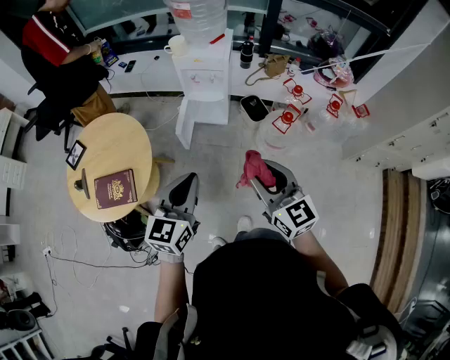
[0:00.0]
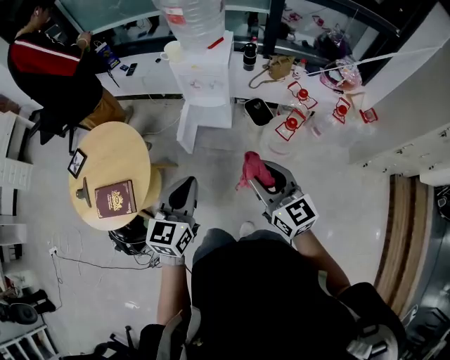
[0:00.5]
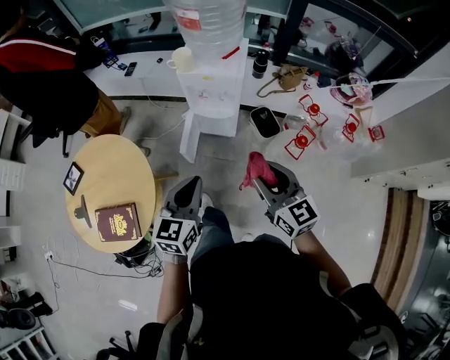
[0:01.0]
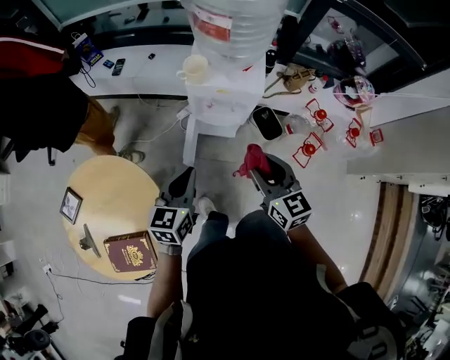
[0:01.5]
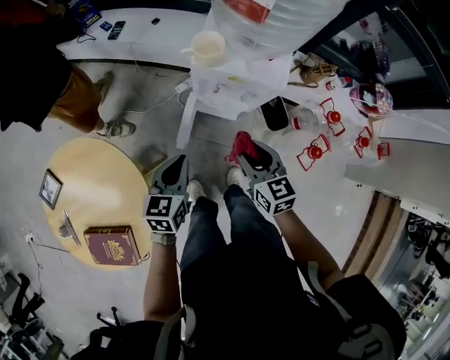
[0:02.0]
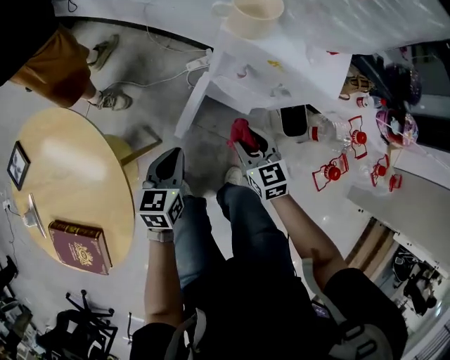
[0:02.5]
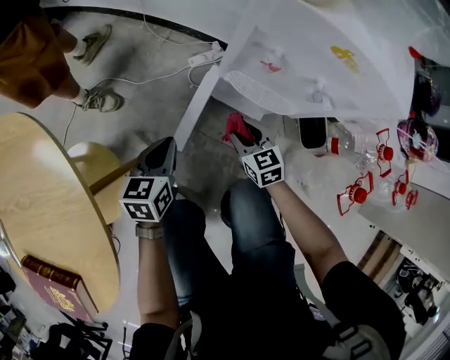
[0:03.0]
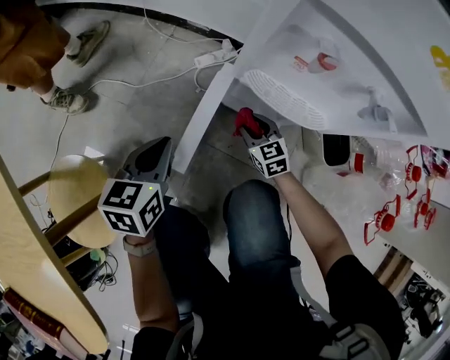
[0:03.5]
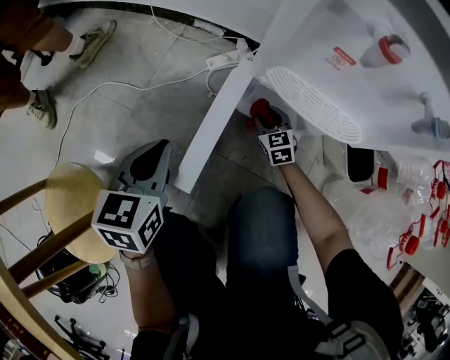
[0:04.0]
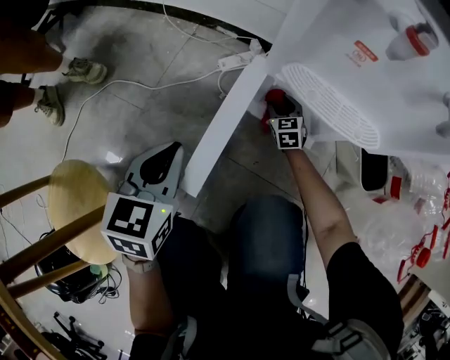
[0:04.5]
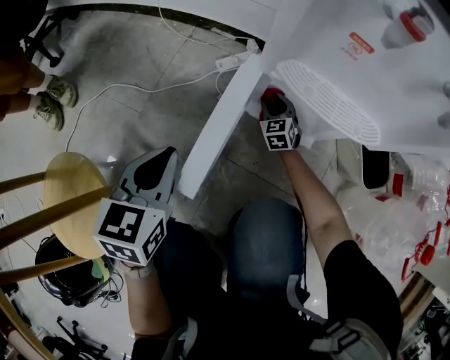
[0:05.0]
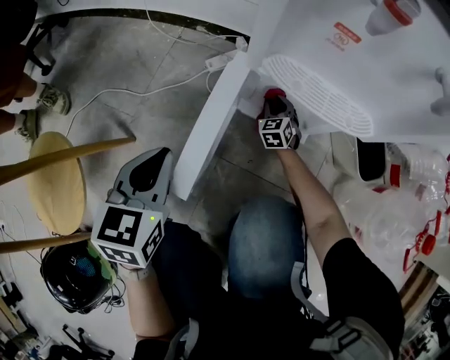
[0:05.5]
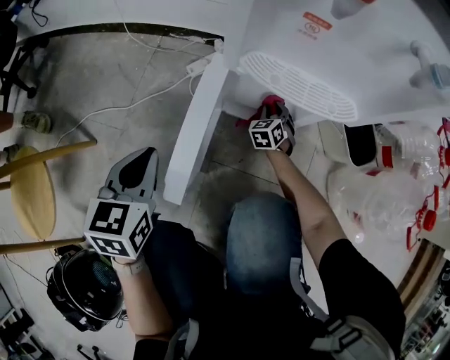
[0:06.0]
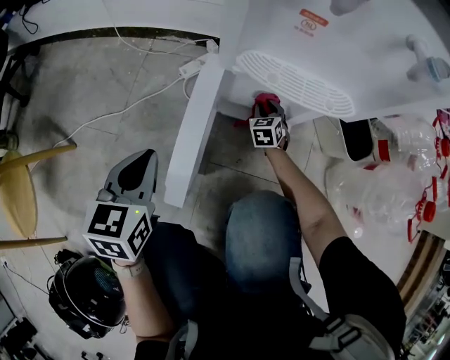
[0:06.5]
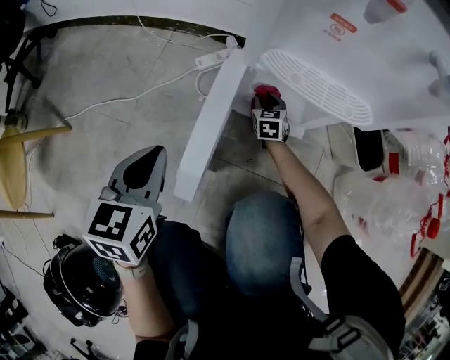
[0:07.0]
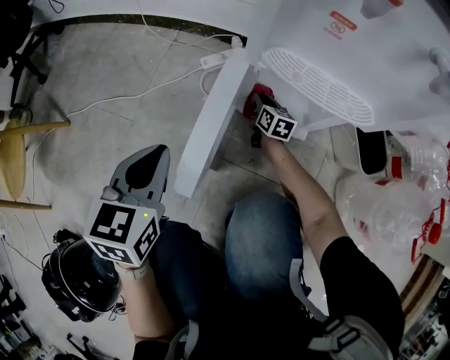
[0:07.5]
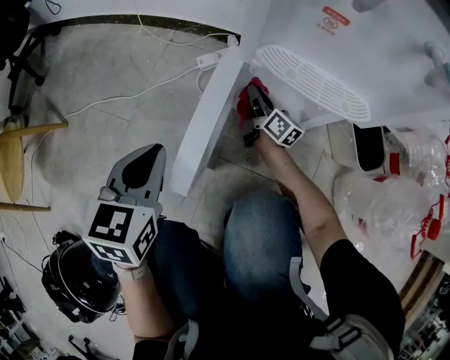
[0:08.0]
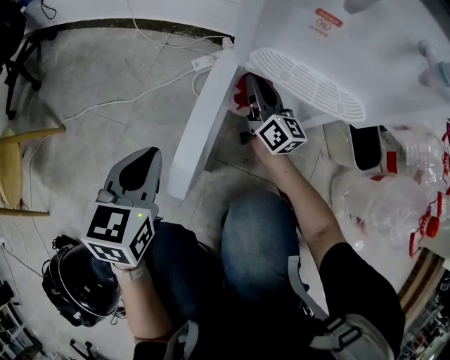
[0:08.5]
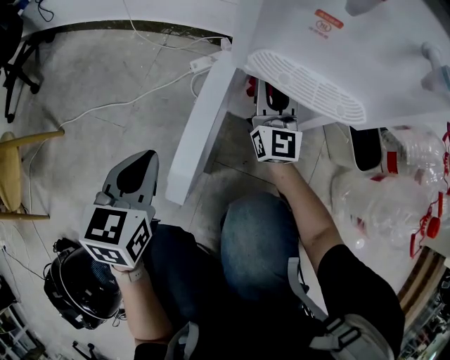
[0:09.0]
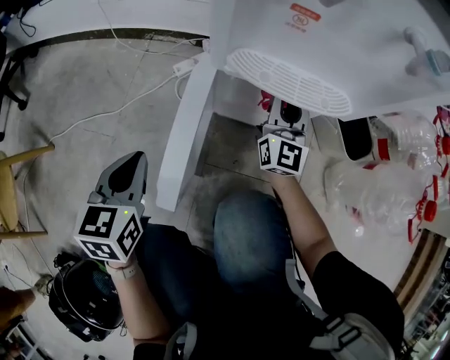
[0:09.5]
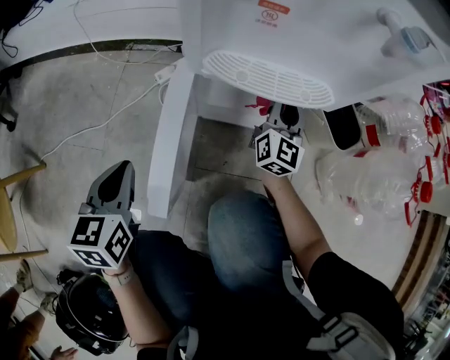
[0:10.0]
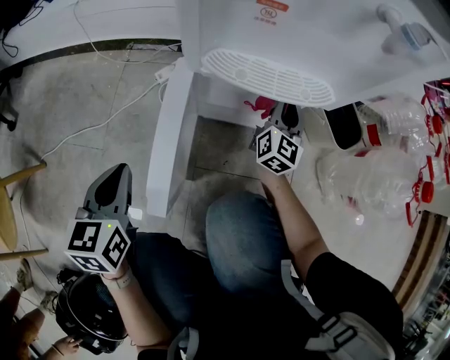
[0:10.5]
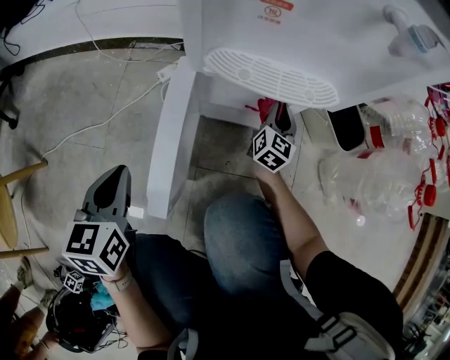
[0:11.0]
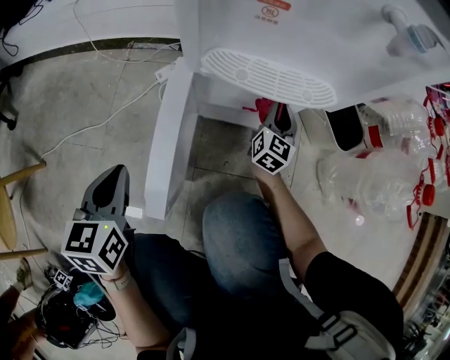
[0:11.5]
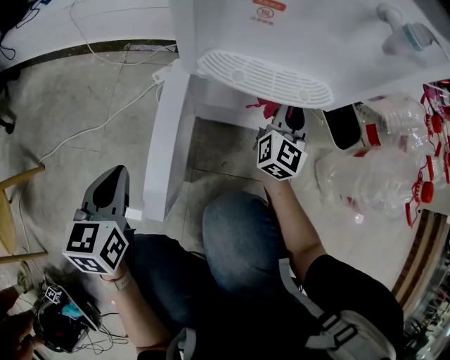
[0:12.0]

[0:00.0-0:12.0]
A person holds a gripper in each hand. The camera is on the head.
0:00.0 to 0:02.0: The two grippers travel together, forward, about 50 cm. The two grippers go some 20 cm downward. The left gripper rotates approximately 20 degrees. Meanwhile the right gripper swivels roughly 20 degrees.
0:02.0 to 0:04.0: The right gripper heads downward, covering approximately 70 cm, and rotates some 20 degrees. The left gripper moves downward, about 50 cm.
0:04.0 to 0:06.0: The right gripper moves to the right and downward, some 10 cm, and changes its angle by about 40 degrees.
0:06.0 to 0:08.0: The right gripper shifts roughly 15 cm to the left and upward, and angles its fingers upward, by some 40 degrees.
0:08.0 to 0:10.0: The right gripper heads to the right and upward, covering some 20 cm, and swivels approximately 60 degrees.
0:10.0 to 0:12.0: The right gripper travels downward and back again, about 10 cm each way.

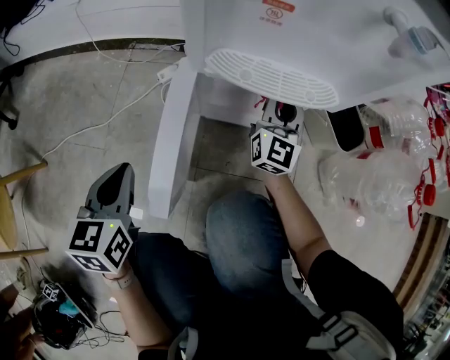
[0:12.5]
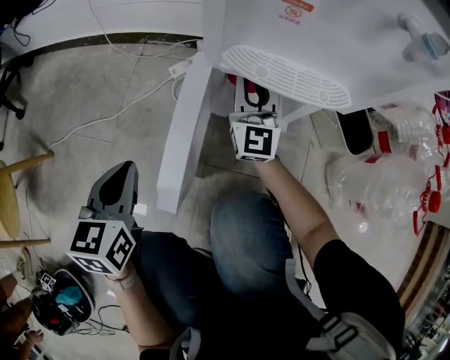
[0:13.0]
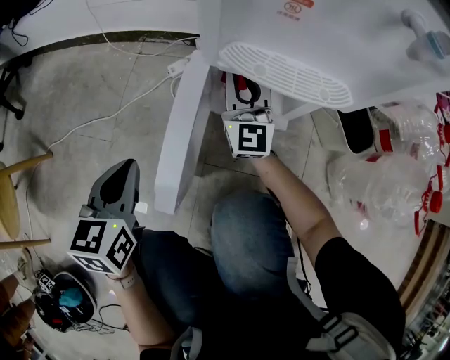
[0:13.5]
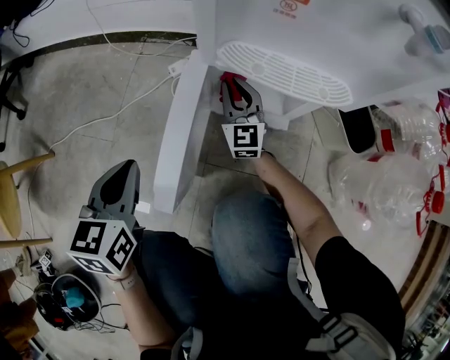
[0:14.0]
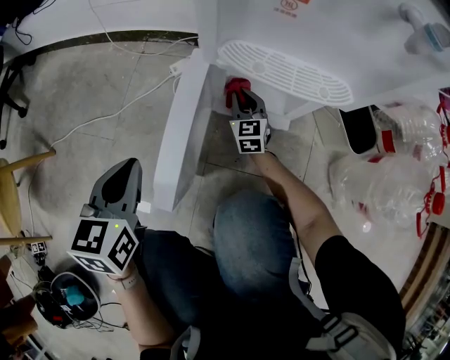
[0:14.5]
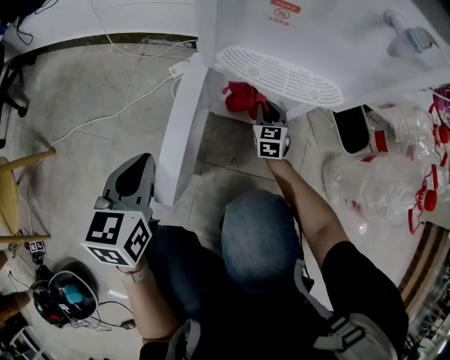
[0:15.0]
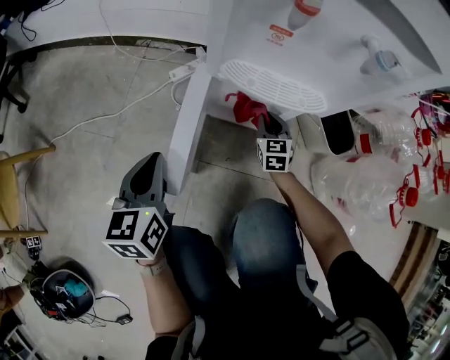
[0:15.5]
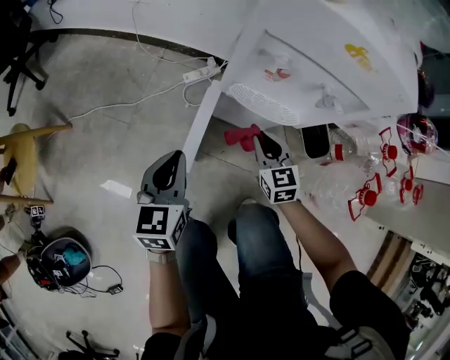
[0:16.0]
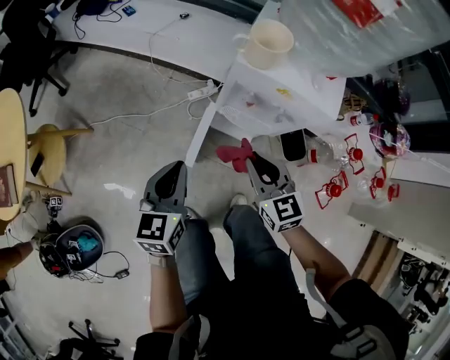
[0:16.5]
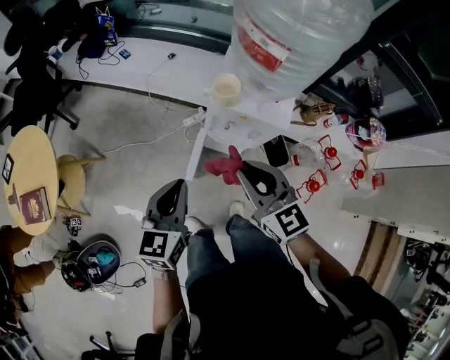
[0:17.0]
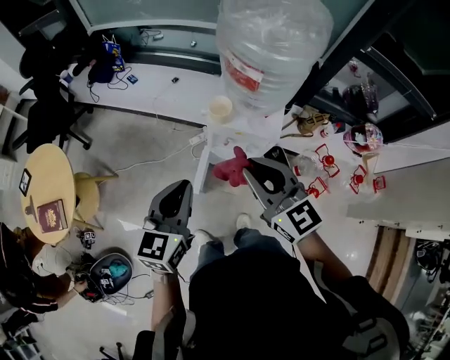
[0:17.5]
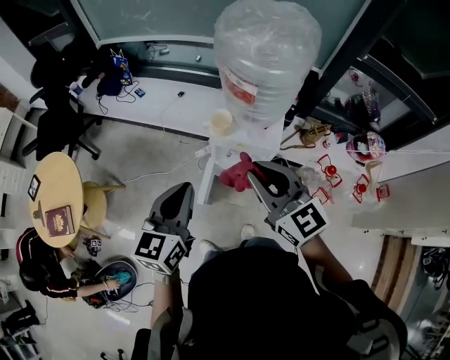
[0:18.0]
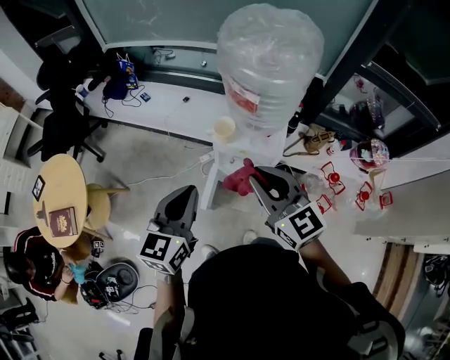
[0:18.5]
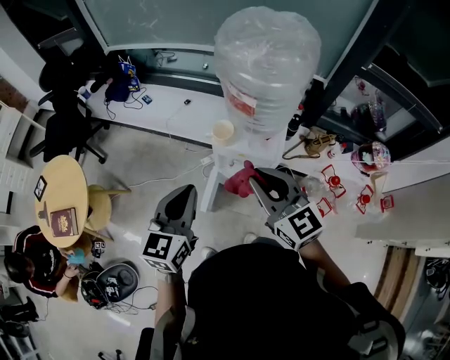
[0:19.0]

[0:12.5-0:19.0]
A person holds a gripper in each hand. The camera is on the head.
0:12.5 to 0:14.5: The right gripper shifts about 20 cm downward and to the left, and turns by about 40 degrees.
0:14.5 to 0:17.0: The two grippers go approximately 70 cm upward. The right gripper changes its angle by approximately 30 degrees.
0:17.0 to 0:19.0: Both grippers move upward, approximately 15 cm.

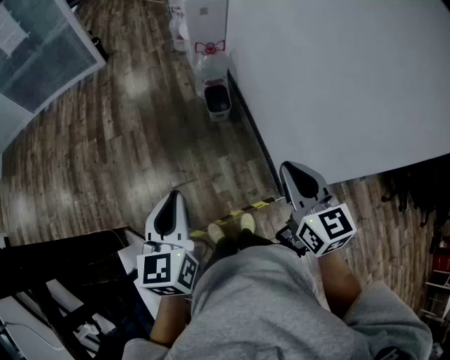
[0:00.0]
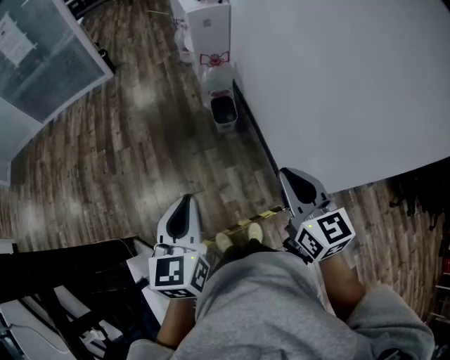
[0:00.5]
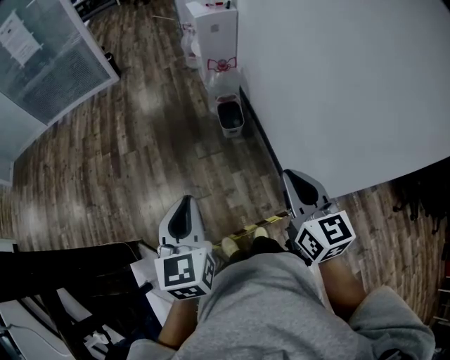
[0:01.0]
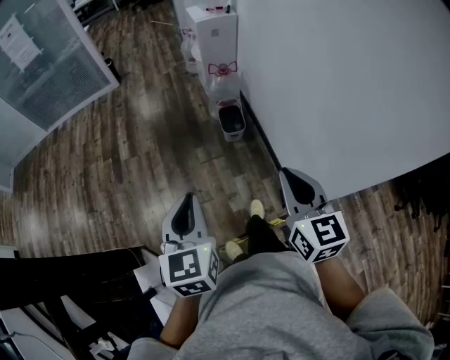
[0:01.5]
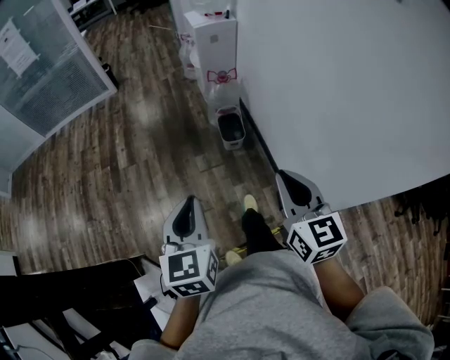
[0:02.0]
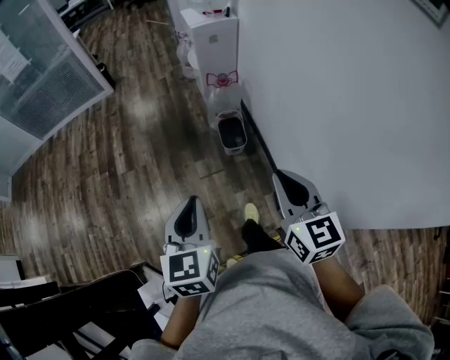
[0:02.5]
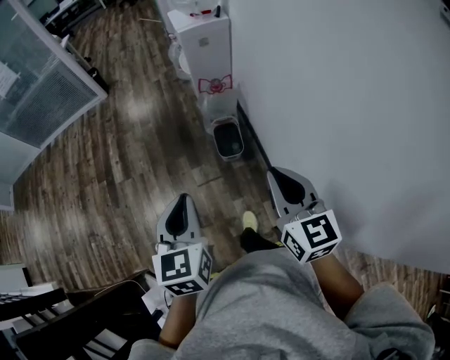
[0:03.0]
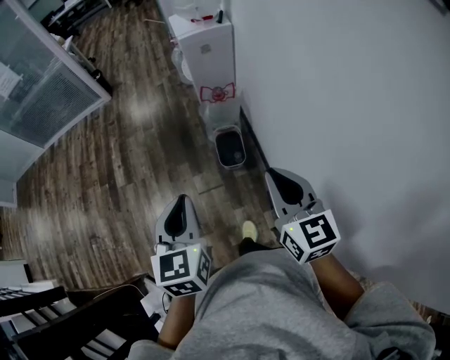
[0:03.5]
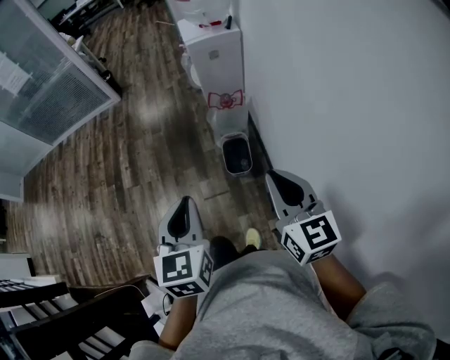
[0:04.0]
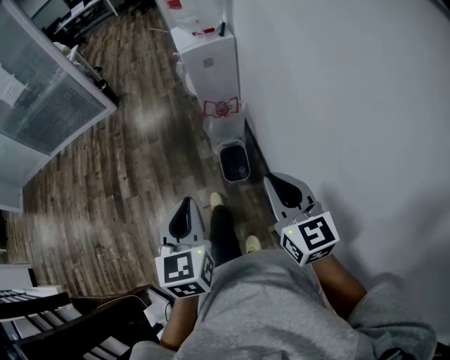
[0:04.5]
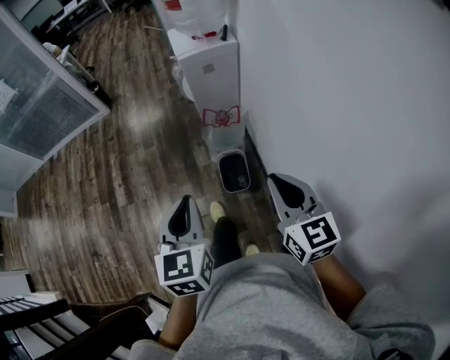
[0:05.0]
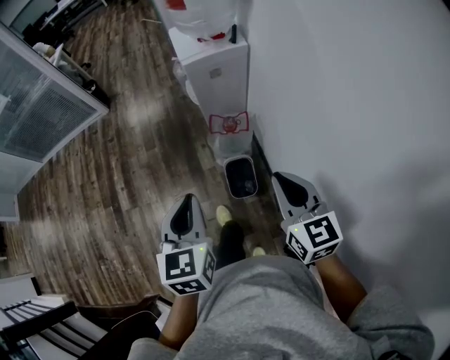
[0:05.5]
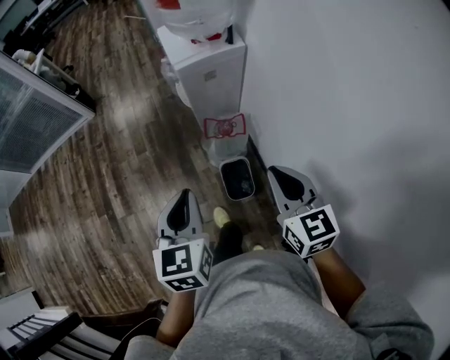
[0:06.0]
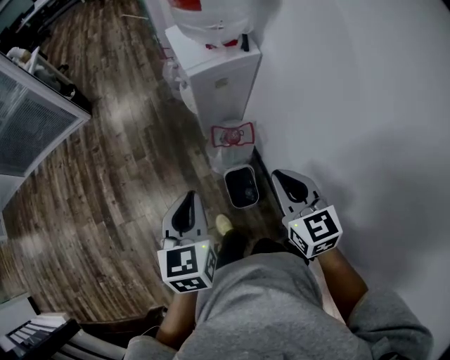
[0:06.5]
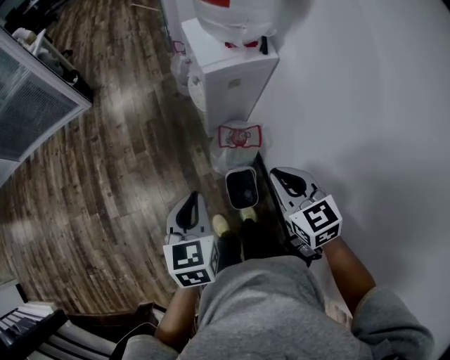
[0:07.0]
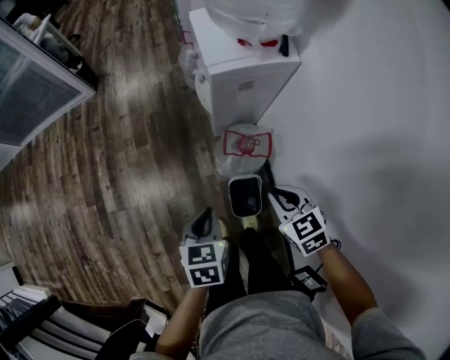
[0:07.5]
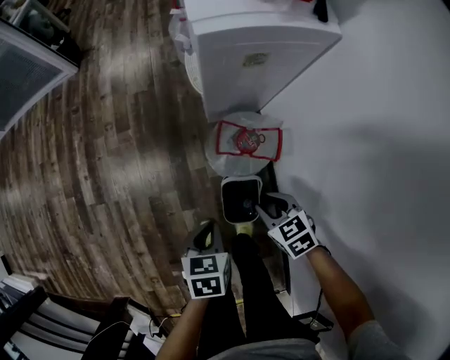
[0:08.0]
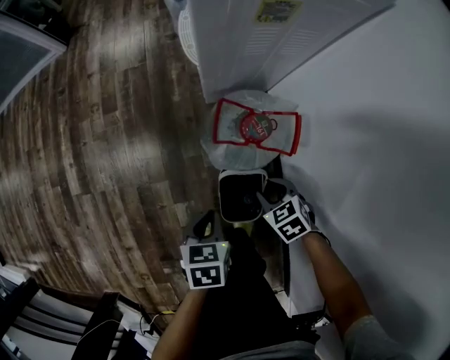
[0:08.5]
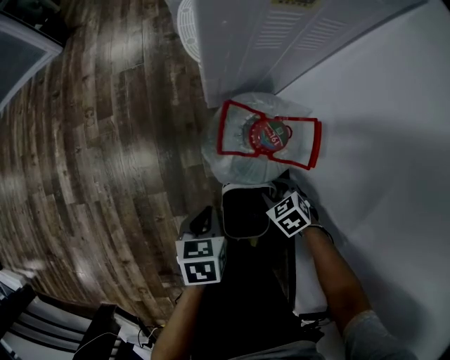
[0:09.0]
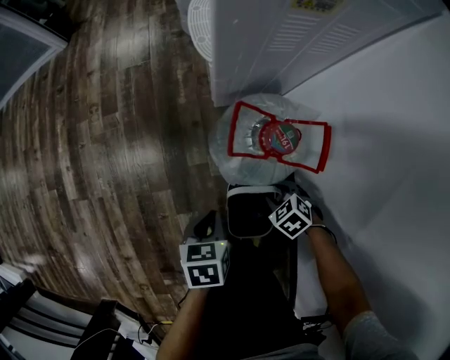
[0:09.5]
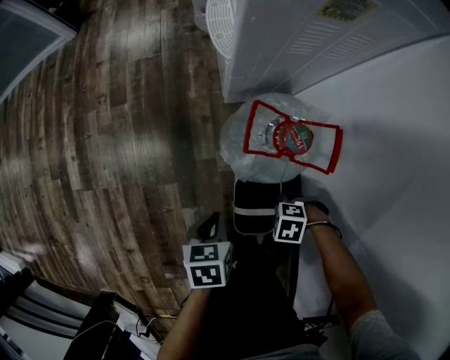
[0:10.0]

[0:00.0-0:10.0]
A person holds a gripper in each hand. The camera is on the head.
0:00.0 to 0:02.0: The left gripper heads forward, covering roughly 5 cm. The right gripper travels forward and to the left by about 10 cm.
0:02.0 to 0:04.0: Both grippers move forward and to the right, some 35 cm.
0:04.0 to 0:06.0: The two grippers go approximately 30 cm forward.
0:06.0 to 0:08.0: Both grippers move downward, about 40 cm. The right gripper points its fingers some 30 degrees further downward, and opens its fingers. Meanwhile the left gripper tips its fingers downward by some 30 degrees.
0:08.0 to 0:10.0: Both grippers travel together downward, roughly 25 cm. The right gripper turns by about 60 degrees.
